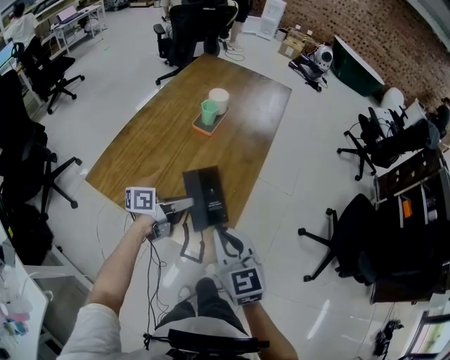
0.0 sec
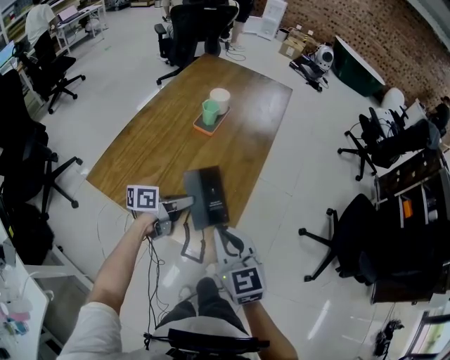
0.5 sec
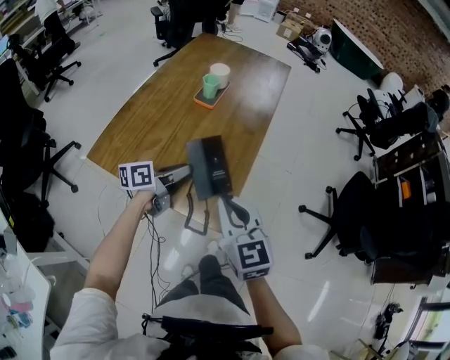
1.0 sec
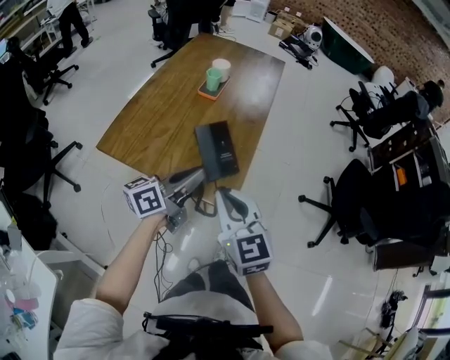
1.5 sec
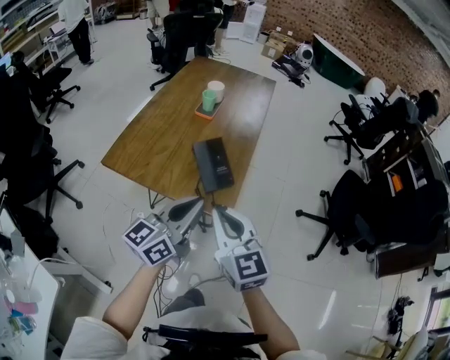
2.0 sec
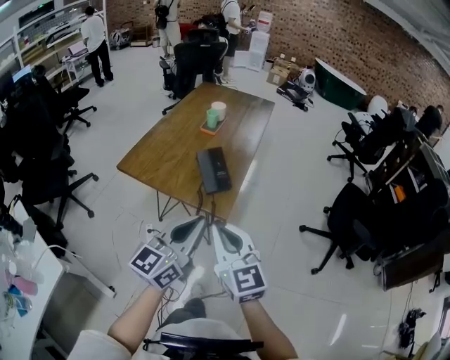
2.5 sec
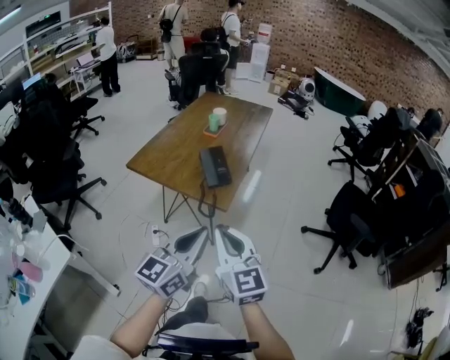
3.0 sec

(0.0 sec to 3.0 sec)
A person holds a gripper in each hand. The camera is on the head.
0.0 sec - 1.5 sec: The right gripper goes roughly 10 cm backward; the left gripper shifts roughly 20 cm upward and backward, and changes its angle by roughly 20 degrees.
1.5 sec - 3.0 sec: Both grippers travel together backward, roughly 25 cm. The left gripper rotates roughly 40 degrees.

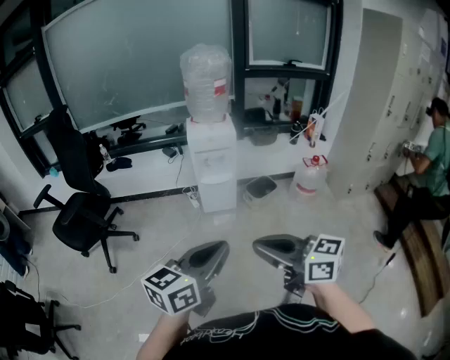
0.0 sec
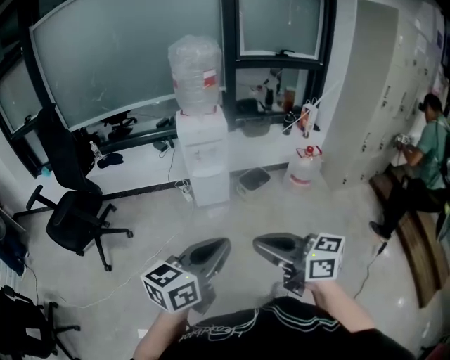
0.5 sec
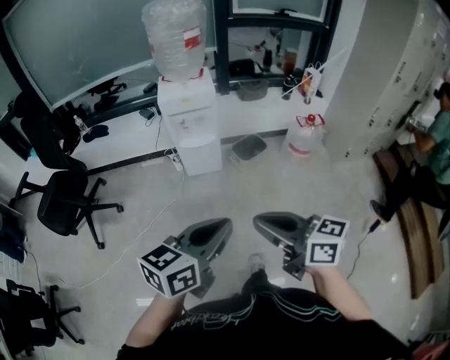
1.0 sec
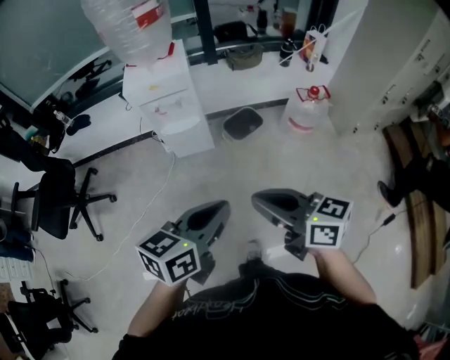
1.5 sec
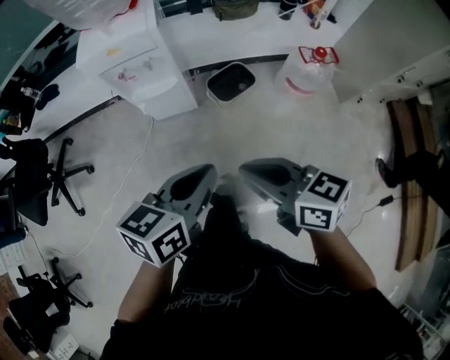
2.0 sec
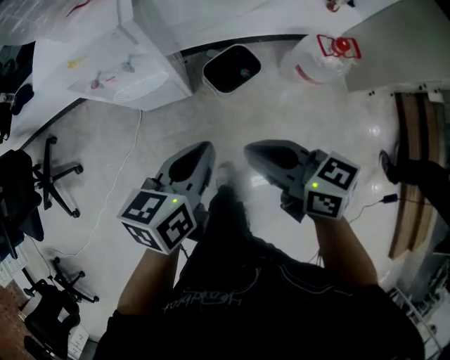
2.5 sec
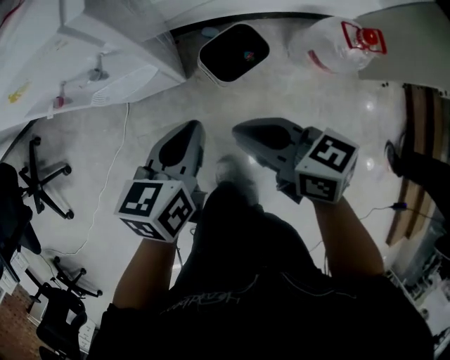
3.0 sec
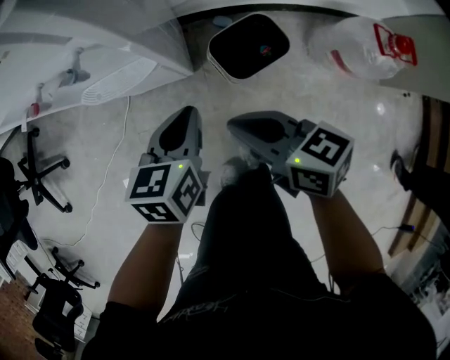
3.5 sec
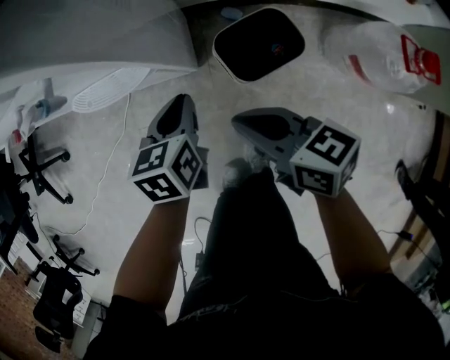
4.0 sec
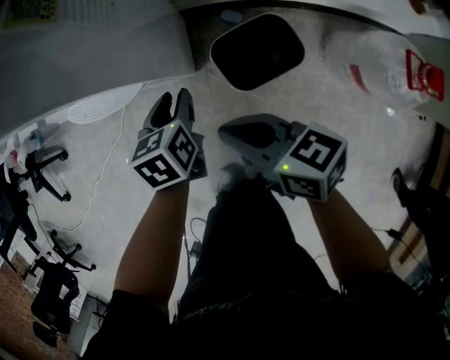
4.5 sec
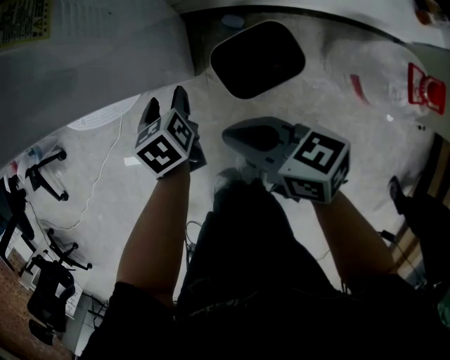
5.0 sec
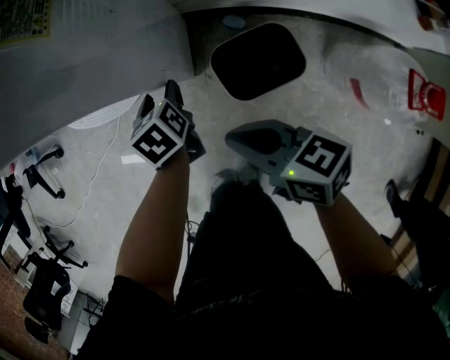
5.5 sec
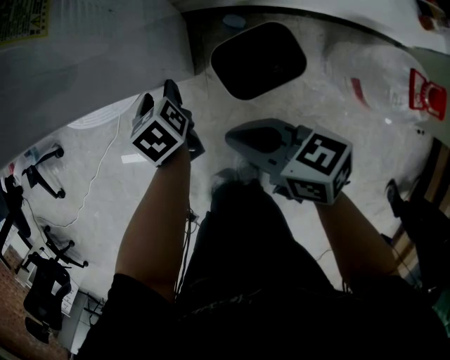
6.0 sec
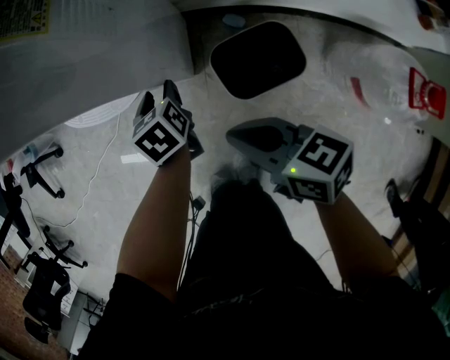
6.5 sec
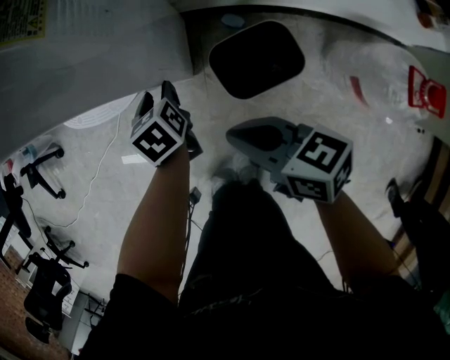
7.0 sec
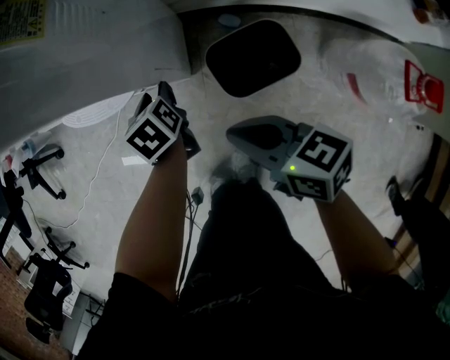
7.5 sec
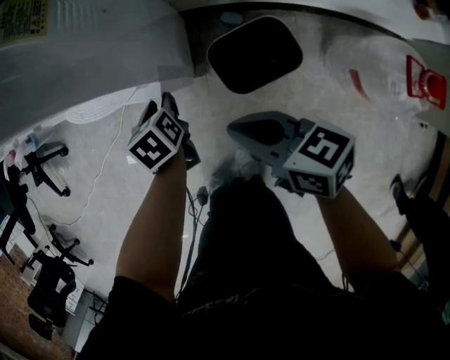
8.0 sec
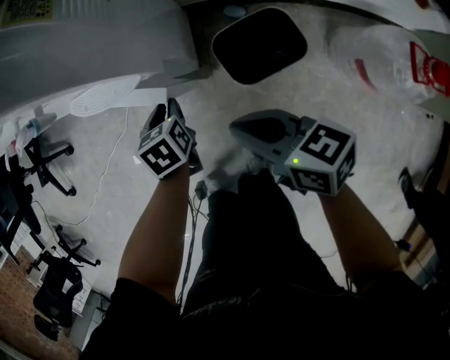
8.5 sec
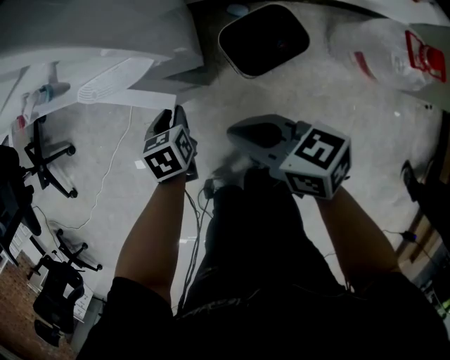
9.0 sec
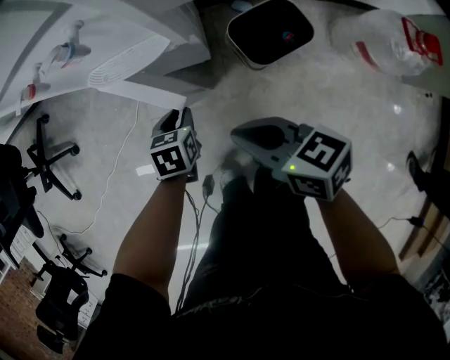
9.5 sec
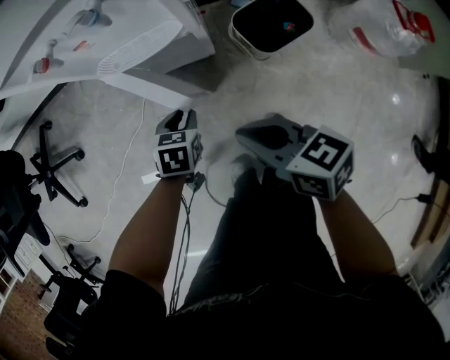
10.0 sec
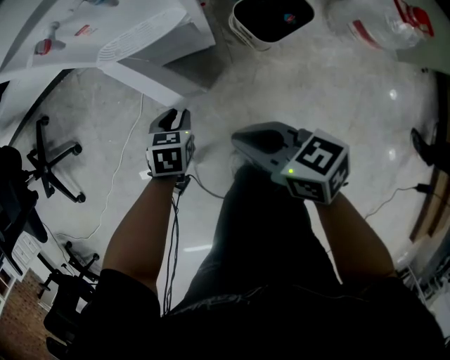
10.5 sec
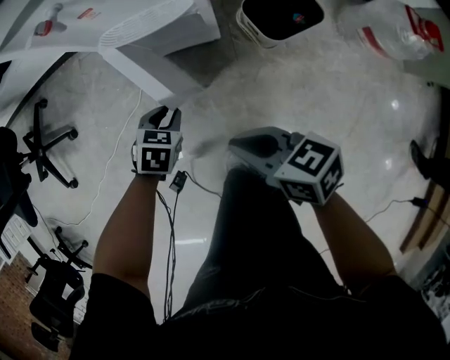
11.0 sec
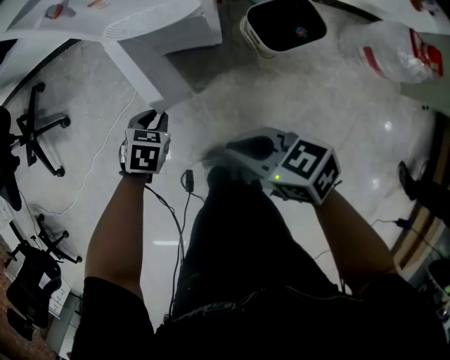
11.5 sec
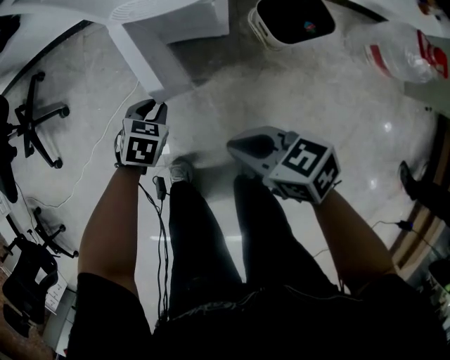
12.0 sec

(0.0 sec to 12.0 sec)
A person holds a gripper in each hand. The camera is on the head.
0.0 sec - 2.0 sec: The two grippers travel together, forward and to the right, roughly 40 cm. Both grippers move downward, some 20 cm. The left gripper swivels some 20 degrees.
2.0 sec - 4.0 sec: The grippers both shift downward and forward by about 50 cm. The left gripper turns by some 30 degrees.
4.0 sec - 6.0 sec: The left gripper goes some 15 cm forward and downward, swivels about 30 degrees, and opens.
6.0 sec - 8.0 sec: The grippers make only small movements.
8.0 sec - 10.0 sec: The left gripper moves to the left and backward, about 15 cm, and turns by some 40 degrees. Meanwhile the right gripper travels to the left by approximately 20 cm.
10.0 sec - 12.0 sec: The right gripper shifts some 10 cm to the left and backward, and rotates about 20 degrees, while the left gripper heads to the left, covering approximately 10 cm.

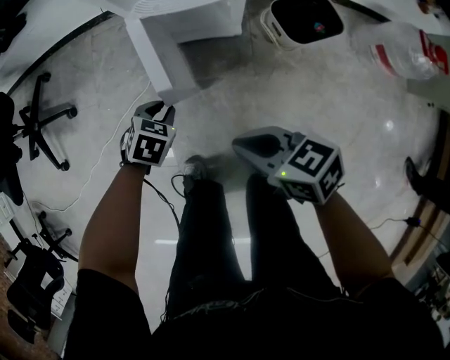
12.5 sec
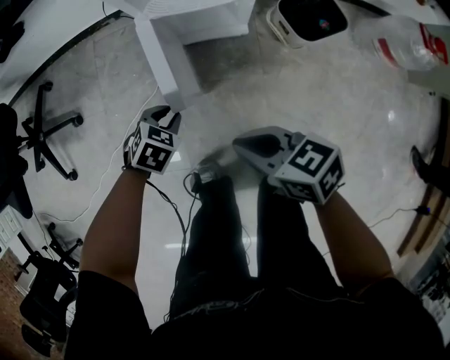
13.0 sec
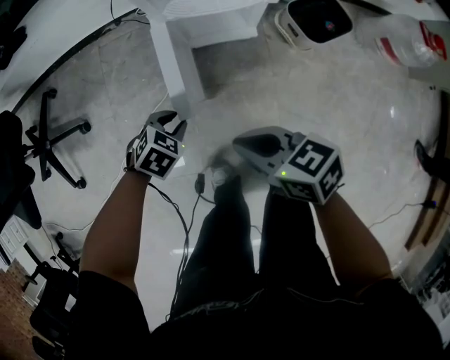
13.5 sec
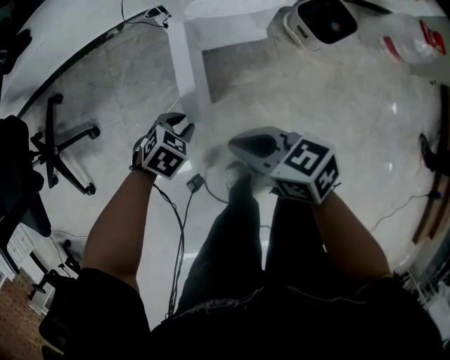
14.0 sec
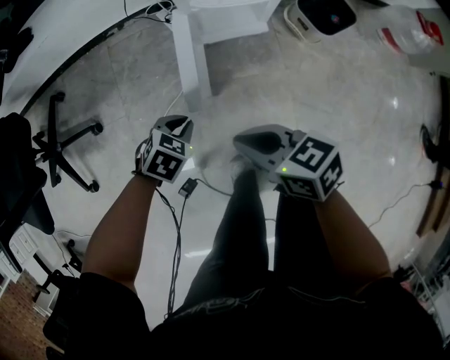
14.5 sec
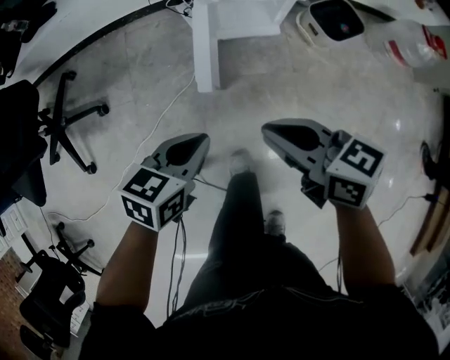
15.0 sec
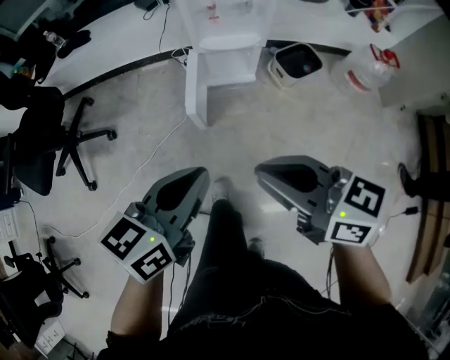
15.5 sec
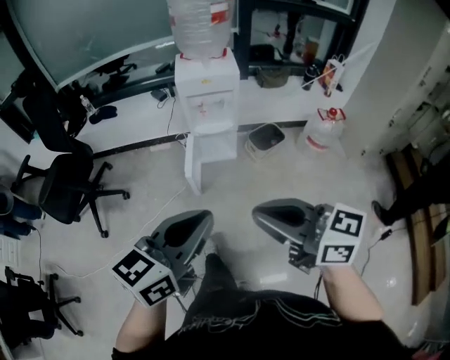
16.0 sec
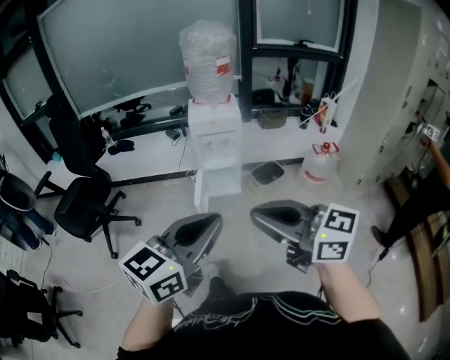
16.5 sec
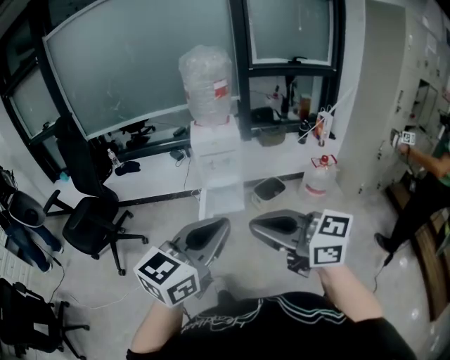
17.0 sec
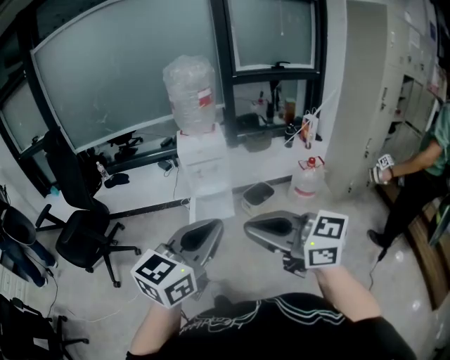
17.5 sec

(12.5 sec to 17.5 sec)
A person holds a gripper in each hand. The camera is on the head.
12.5 sec - 15.0 sec: The right gripper ends up some 15 cm from where it was; the left gripper is displaced upward by roughly 20 cm, and tips its fingers upward by approximately 30 degrees.
15.0 sec - 17.5 sec: The pair of grippers is taken backward, roughly 40 cm. The two grippers go some 60 cm upward. The left gripper tilts its fingers approximately 40 degrees upward; the right gripper changes its angle by approximately 40 degrees.

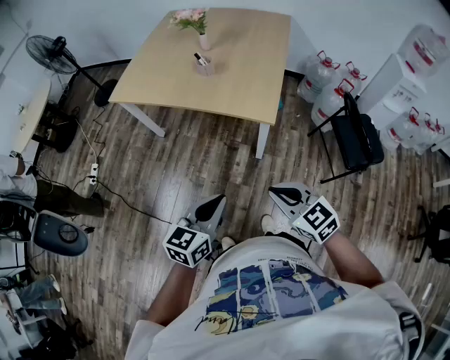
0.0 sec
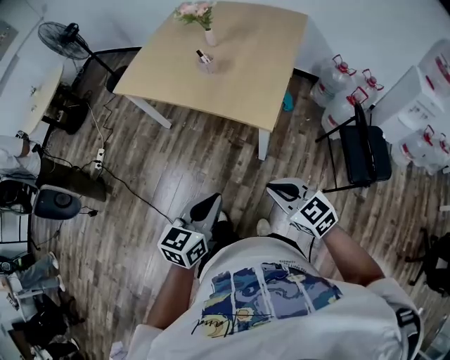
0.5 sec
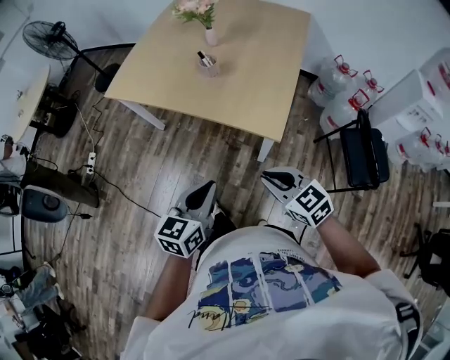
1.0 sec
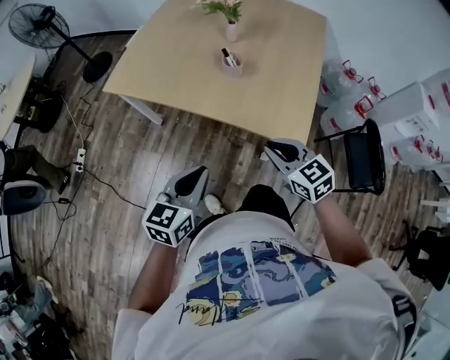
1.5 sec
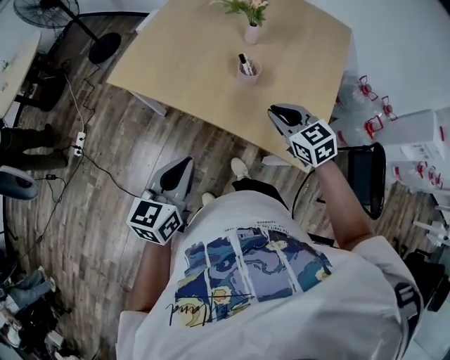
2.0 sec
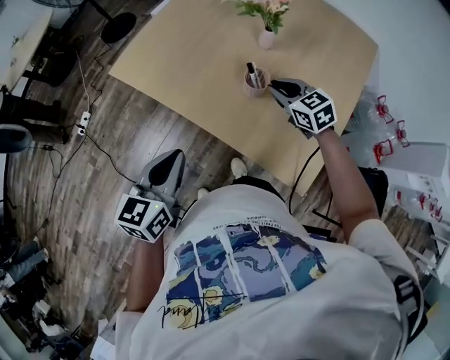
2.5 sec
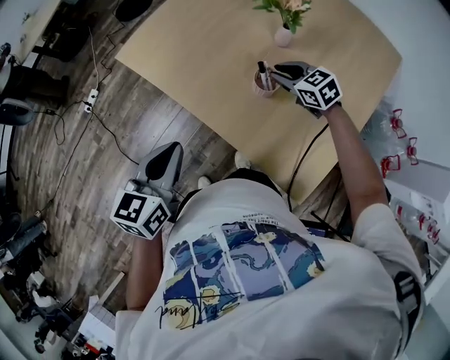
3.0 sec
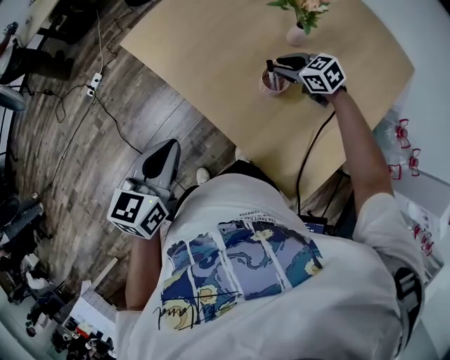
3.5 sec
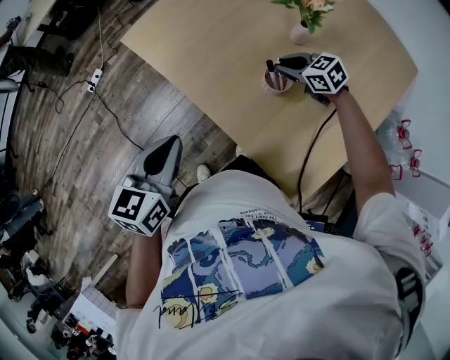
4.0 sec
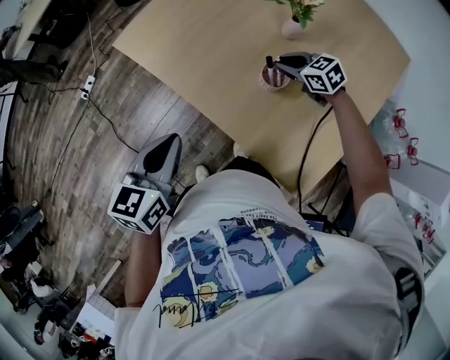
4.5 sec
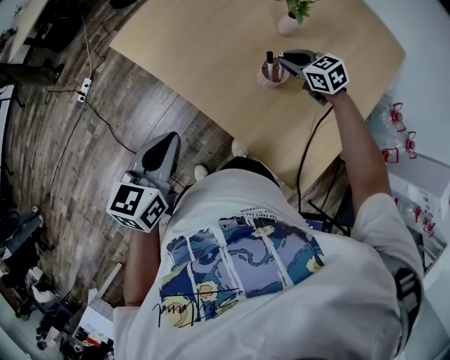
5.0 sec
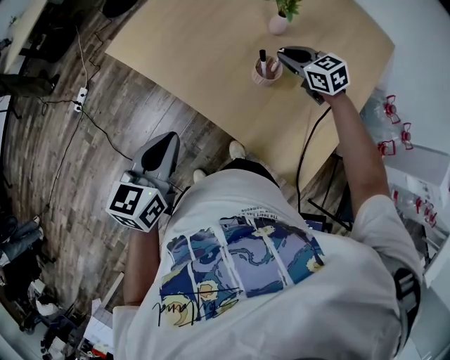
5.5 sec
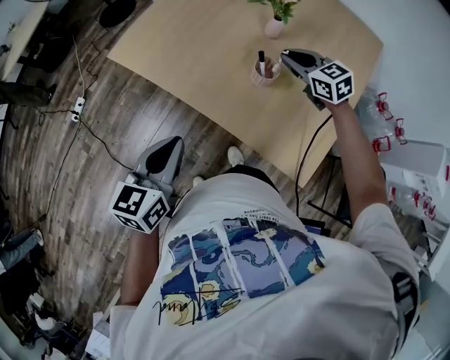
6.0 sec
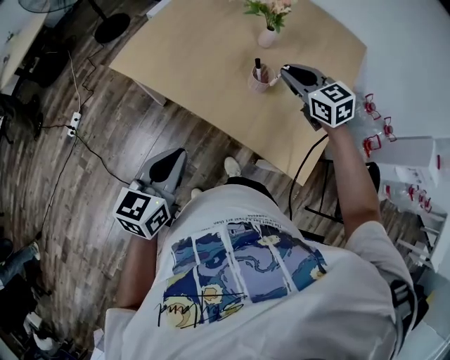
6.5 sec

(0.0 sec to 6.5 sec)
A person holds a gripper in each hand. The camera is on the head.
0.0 sec - 2.0 sec: Both grippers move forward, some 40 cm.
2.0 sec - 4.5 sec: The right gripper moves roughly 30 cm, and rotates approximately 30 degrees, while the left gripper ends up some 10 cm from where it was.
4.5 sec - 6.5 sec: The right gripper is displaced upward and backward by approximately 20 cm, and rotates about 30 degrees. The left gripper is displaced backward and to the left by roughly 10 cm.
